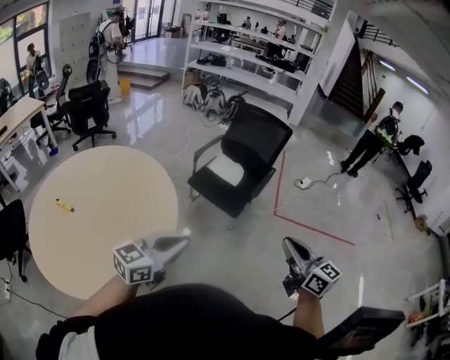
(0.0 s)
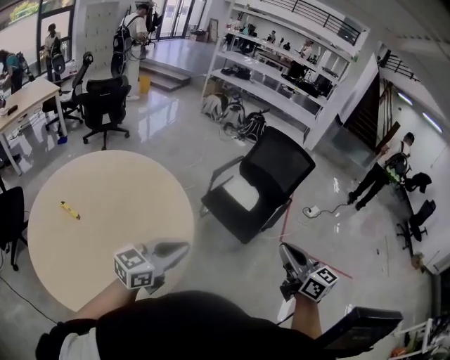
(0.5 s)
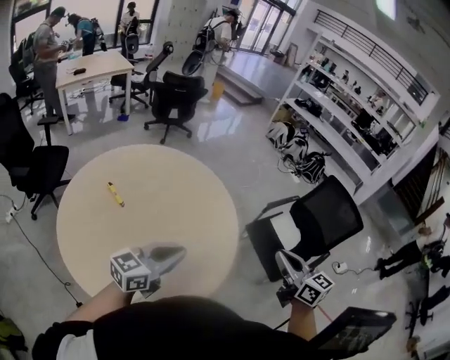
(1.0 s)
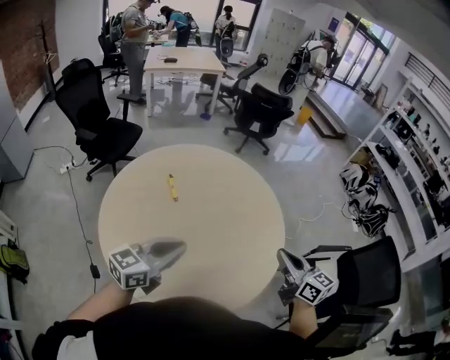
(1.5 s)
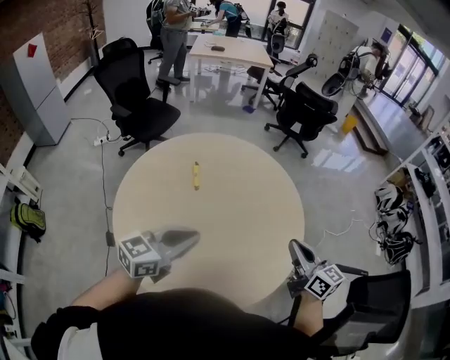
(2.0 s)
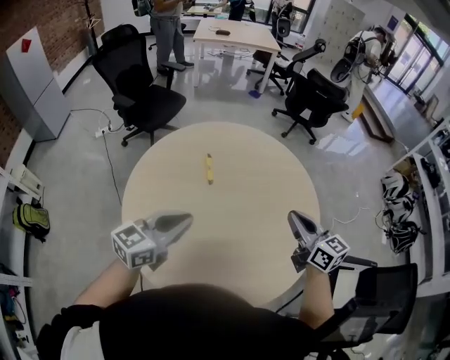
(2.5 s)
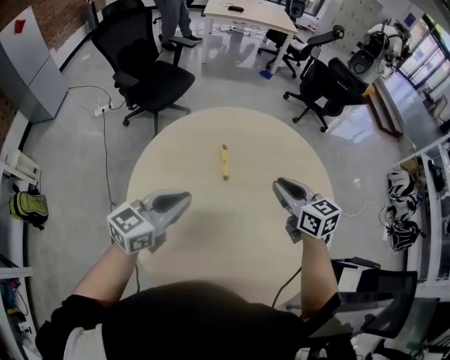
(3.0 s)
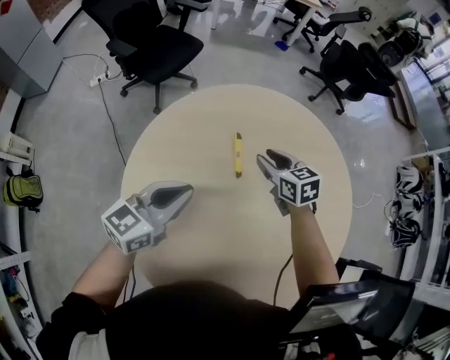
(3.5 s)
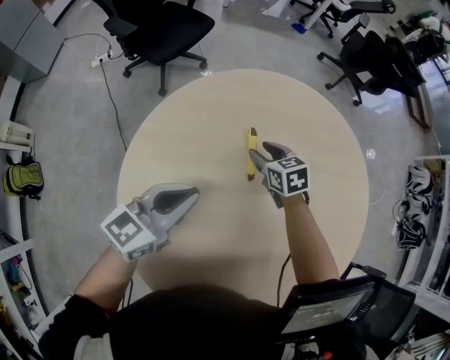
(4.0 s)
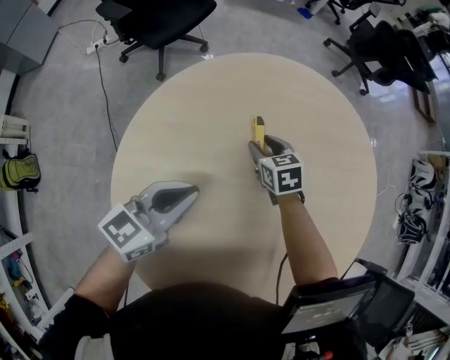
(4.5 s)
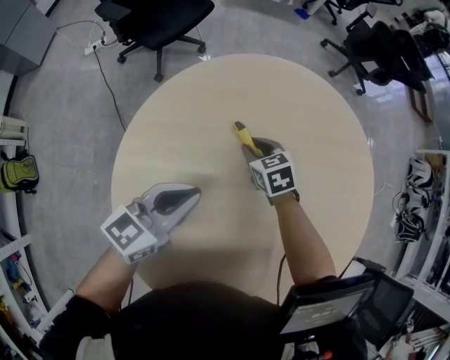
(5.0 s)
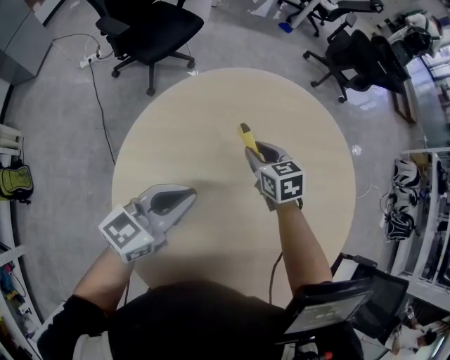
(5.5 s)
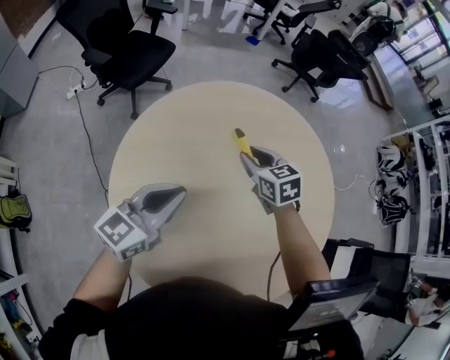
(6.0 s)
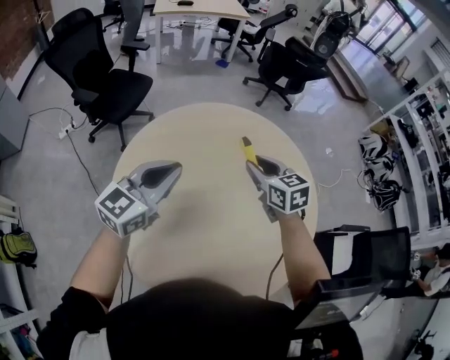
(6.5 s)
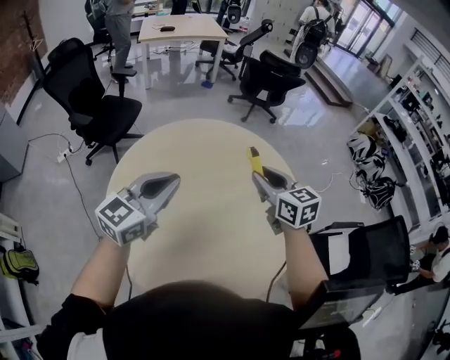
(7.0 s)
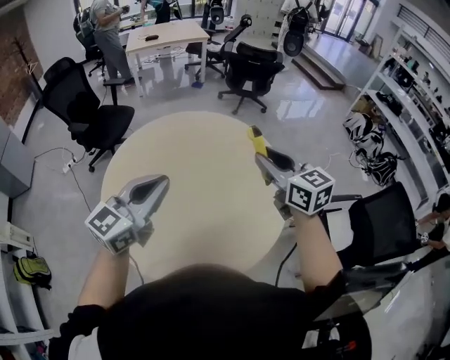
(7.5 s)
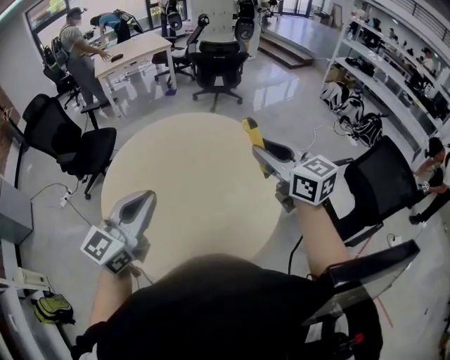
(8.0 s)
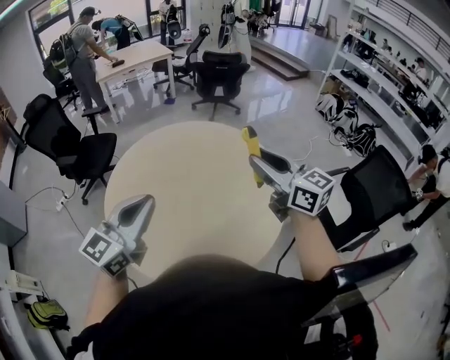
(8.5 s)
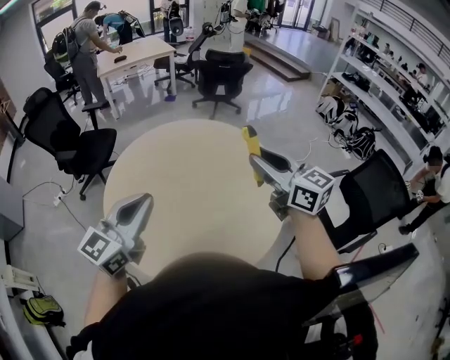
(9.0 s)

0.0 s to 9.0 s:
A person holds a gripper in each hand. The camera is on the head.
0.0 to 2.0 s: The right gripper moves some 60 cm, and changes its angle by about 70 degrees. The left gripper moves about 35 cm, and swivels approximately 70 degrees.
2.0 to 4.5 s: The right gripper travels forward, to the left and downward by approximately 60 cm, tilts its fingers some 40 degrees downward, and opens its fingers, while the left gripper is displaced forward, downward and to the left by about 40 cm.
4.5 to 7.0 s: The right gripper shifts approximately 50 cm upward, backward and to the right, and tilts its fingers roughly 30 degrees upward. Meanwhile the left gripper is displaced upward by approximately 30 cm, and swivels roughly 30 degrees.
7.0 to 9.0 s: The right gripper is displaced backward and upward by about 25 cm, and turns by about 20 degrees; the left gripper shifts about 15 cm backward.

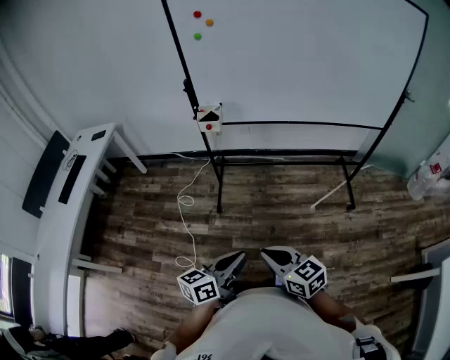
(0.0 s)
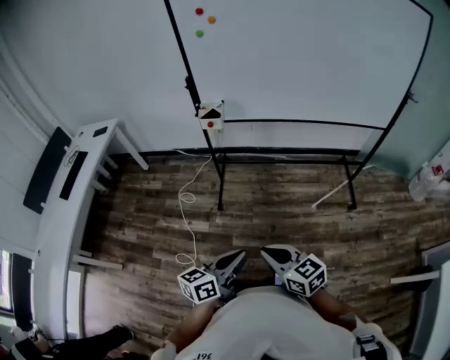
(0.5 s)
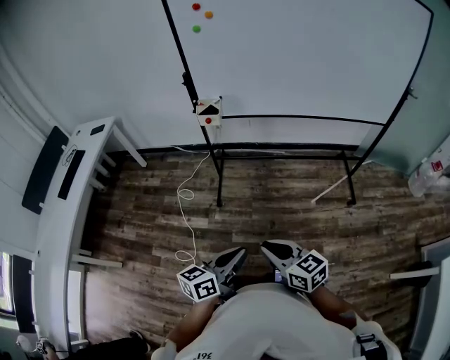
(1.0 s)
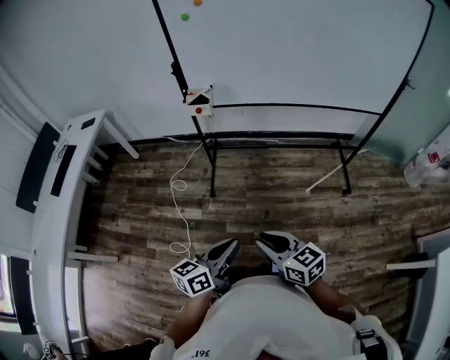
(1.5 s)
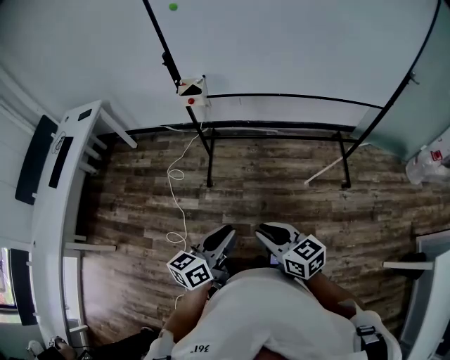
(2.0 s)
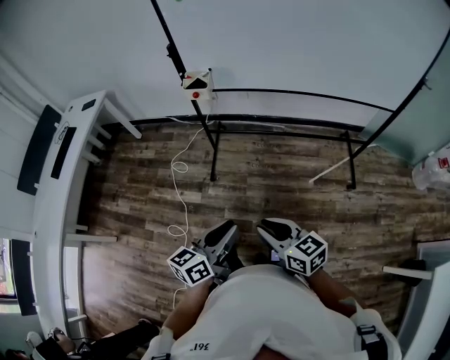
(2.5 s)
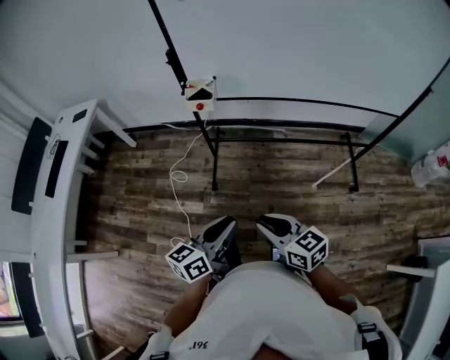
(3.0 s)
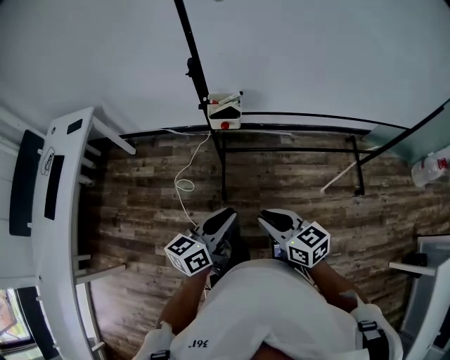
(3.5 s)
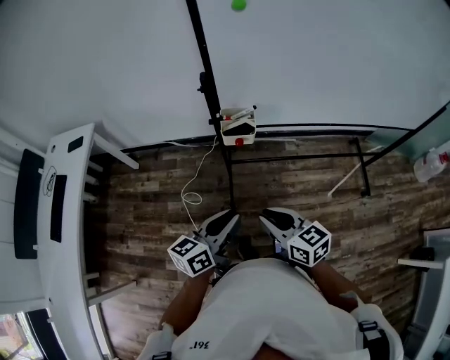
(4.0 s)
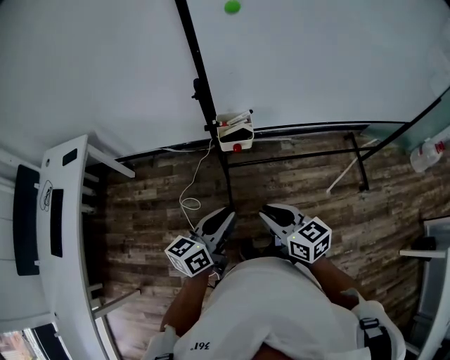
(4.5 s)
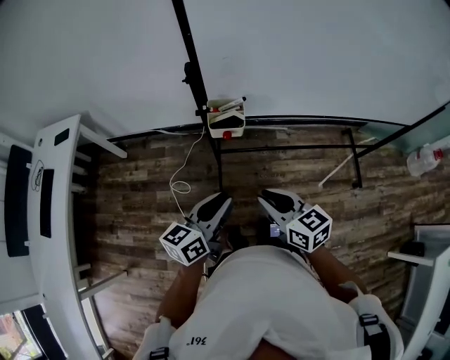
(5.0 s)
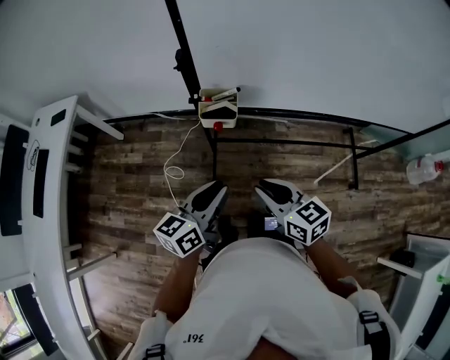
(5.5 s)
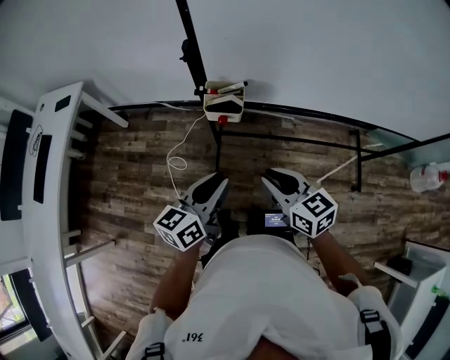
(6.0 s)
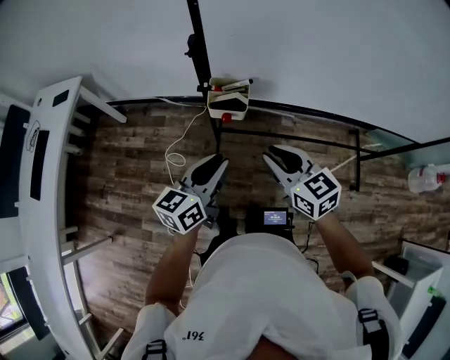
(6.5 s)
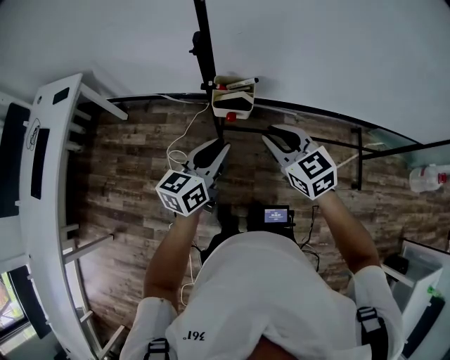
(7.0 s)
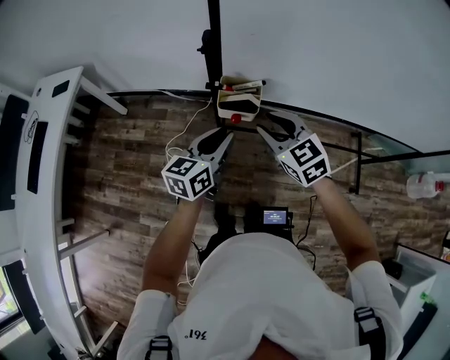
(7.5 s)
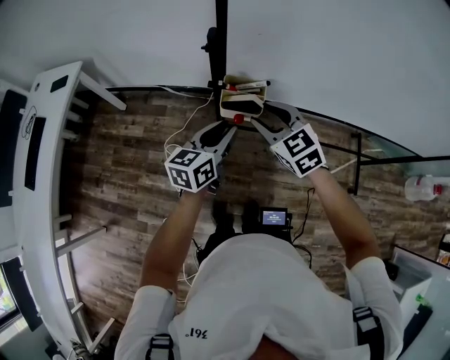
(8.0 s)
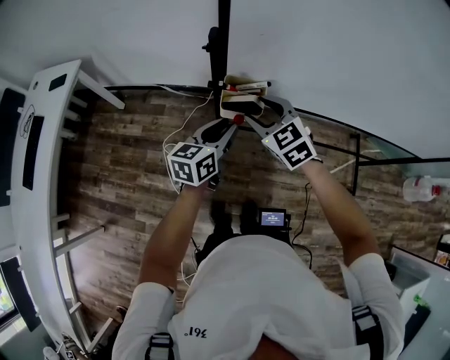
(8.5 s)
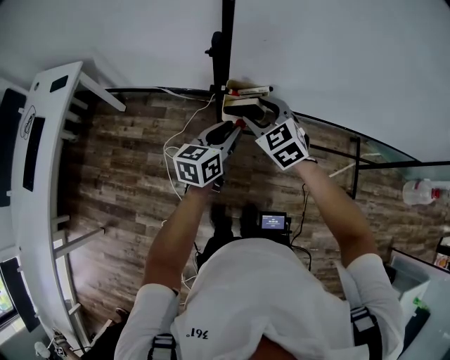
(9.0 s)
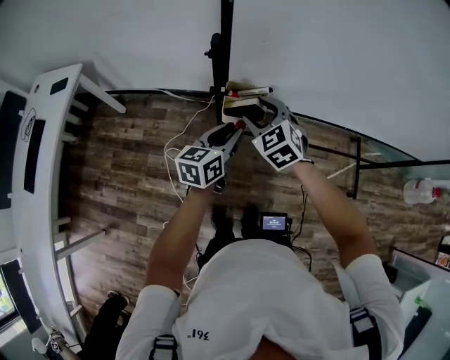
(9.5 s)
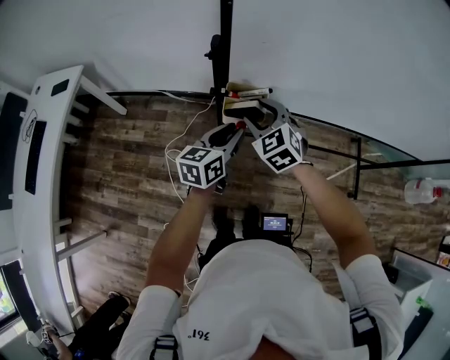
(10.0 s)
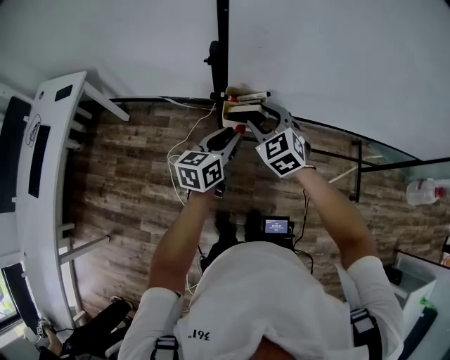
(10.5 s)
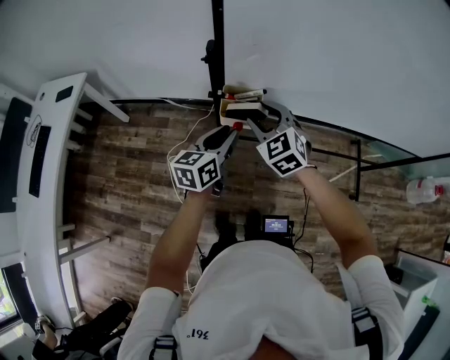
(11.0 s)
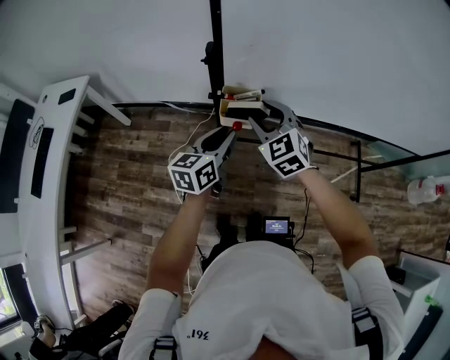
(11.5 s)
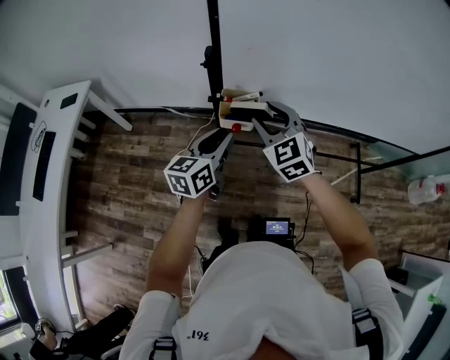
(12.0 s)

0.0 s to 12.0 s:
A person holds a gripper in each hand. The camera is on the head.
0.0 to 2.0 s: The left gripper moves about 5 cm. Meanwhile the right gripper travels to the right by roughly 5 cm.
2.0 to 4.0 s: The two grippers travel together, forward and to the left, some 40 cm.
4.0 to 6.0 s: The right gripper heads to the right and forward, covering some 10 cm; the left gripper moves forward and to the right, approximately 10 cm.
6.0 to 8.0 s: Both grippers travel together forward, approximately 15 cm. The right gripper rotates some 30 degrees, and opens.
8.0 to 10.0 s: The grippers stay close to where they were, moving slightly.
10.0 to 12.0 s: Both grippers travel together upward, roughly 5 cm.

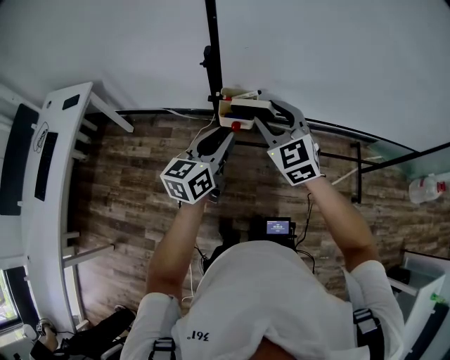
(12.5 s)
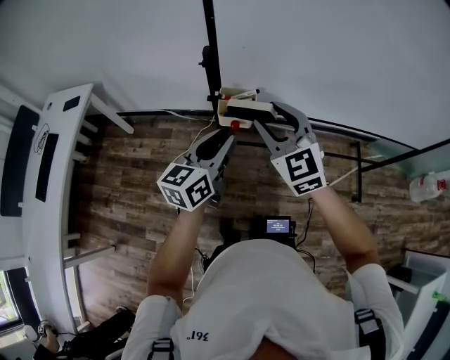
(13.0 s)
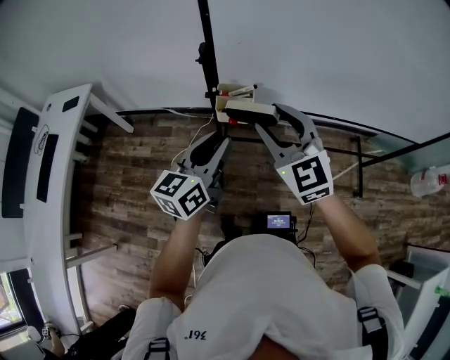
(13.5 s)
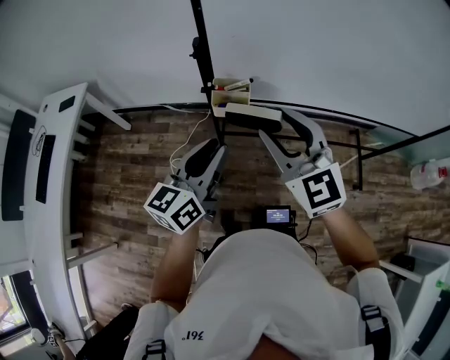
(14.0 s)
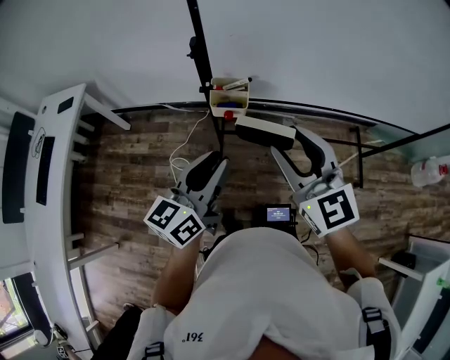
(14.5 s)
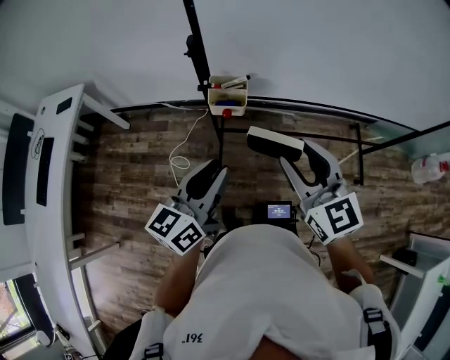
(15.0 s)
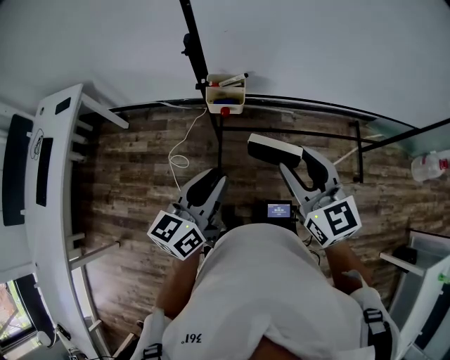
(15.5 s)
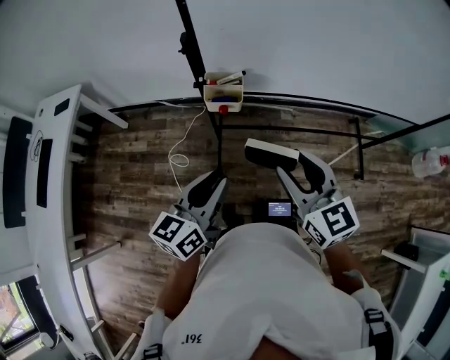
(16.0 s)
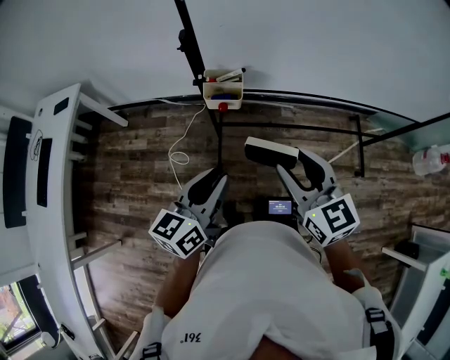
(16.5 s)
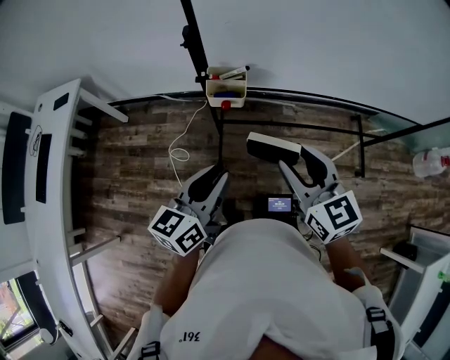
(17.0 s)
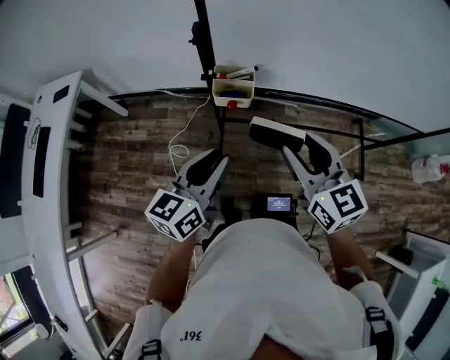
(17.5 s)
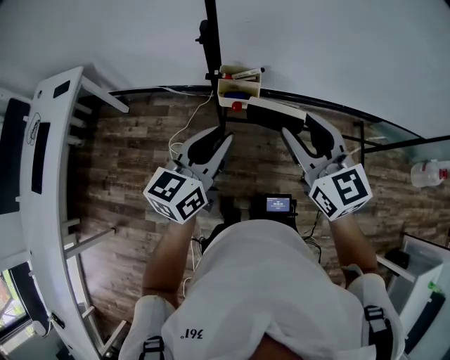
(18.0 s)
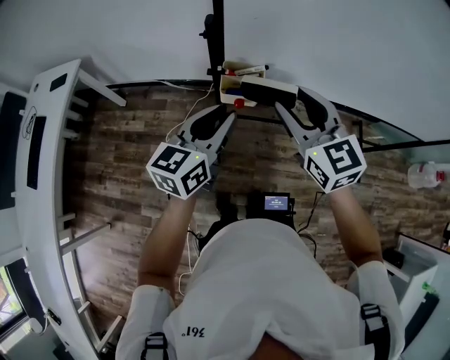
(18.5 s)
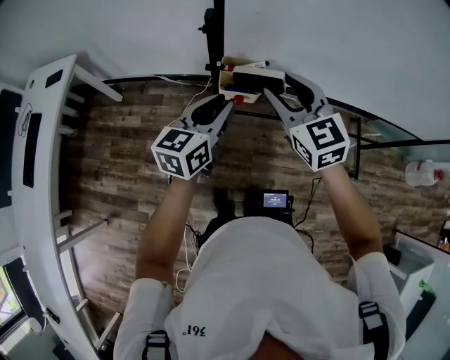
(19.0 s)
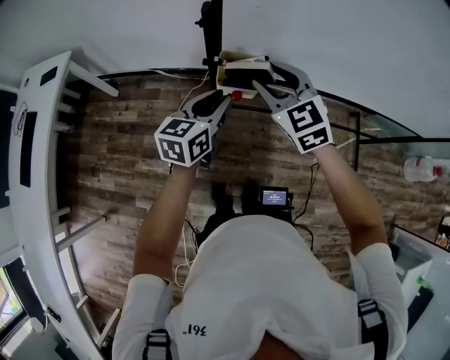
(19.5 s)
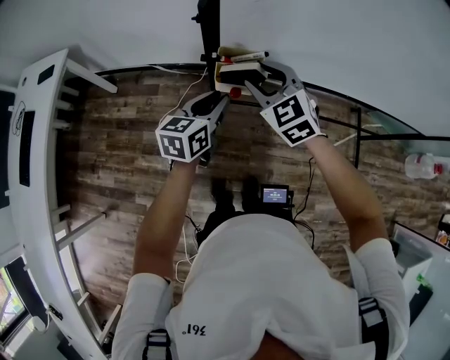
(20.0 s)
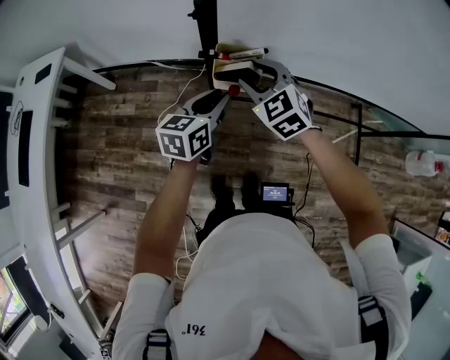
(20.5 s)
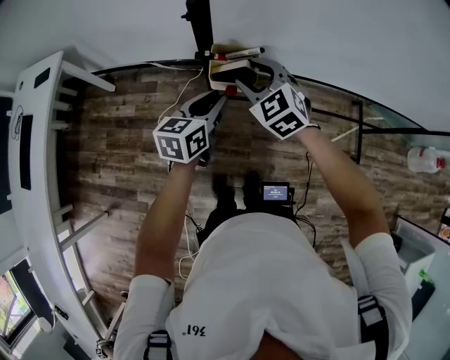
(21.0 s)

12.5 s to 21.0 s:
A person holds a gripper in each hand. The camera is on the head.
12.5 to 14.5 s: The left gripper is displaced backward by approximately 10 cm, while the right gripper travels backward and upward by roughly 15 cm.
14.5 to 16.5 s: The left gripper shifts by roughly 5 cm. The right gripper moves downward, approximately 5 cm.
16.5 to 19.0 s: The right gripper is displaced forward and to the left by roughly 20 cm. Meanwhile the left gripper travels forward by about 15 cm.
19.0 to 21.0 s: The grippers both shift downward by about 10 cm. The right gripper turns by approximately 20 degrees.
